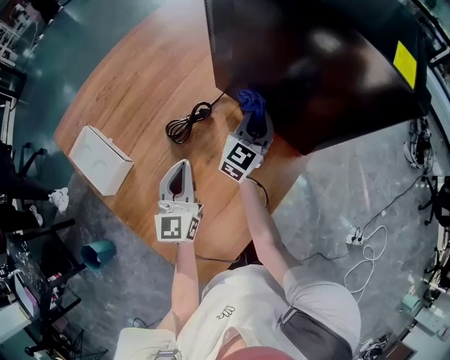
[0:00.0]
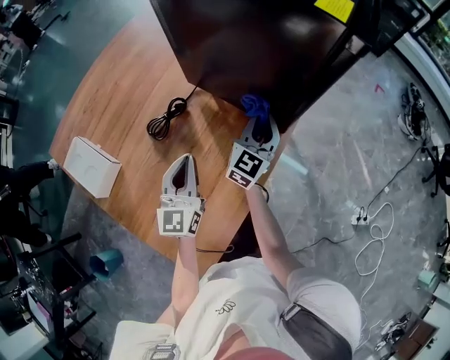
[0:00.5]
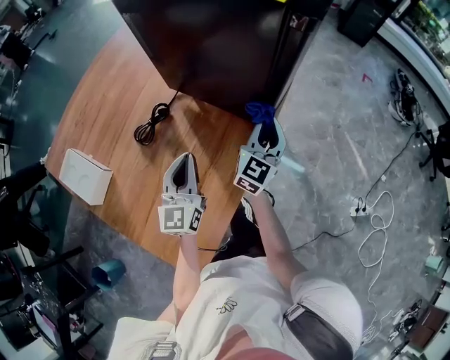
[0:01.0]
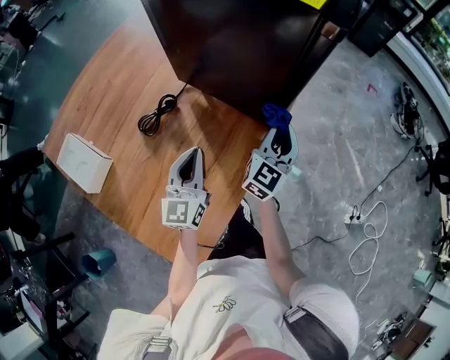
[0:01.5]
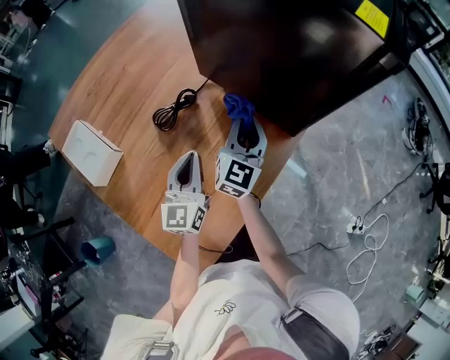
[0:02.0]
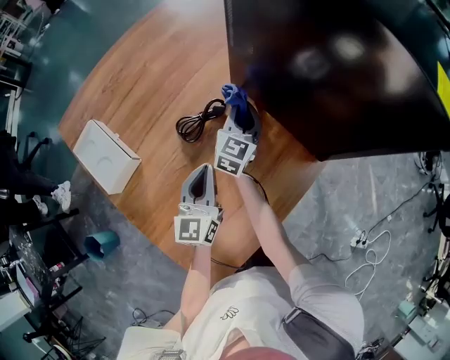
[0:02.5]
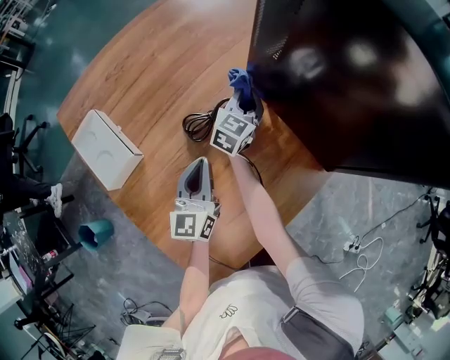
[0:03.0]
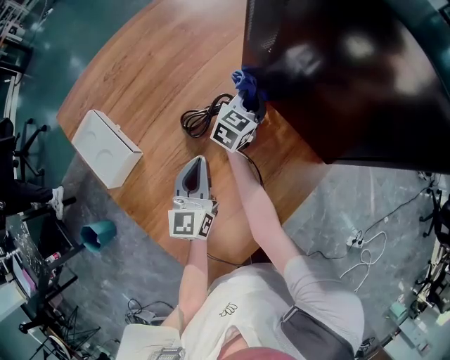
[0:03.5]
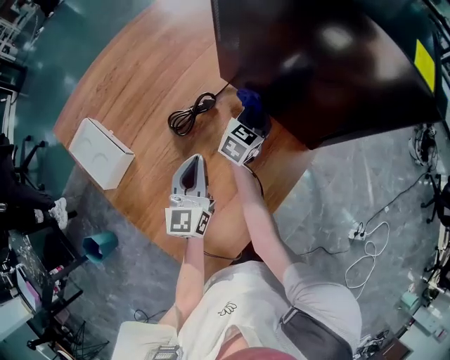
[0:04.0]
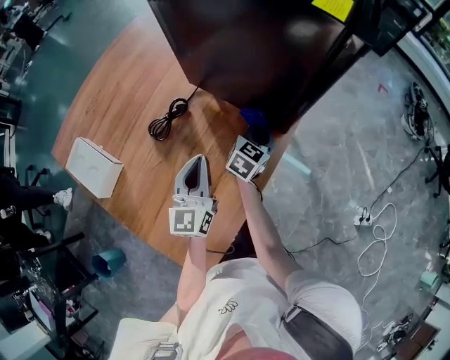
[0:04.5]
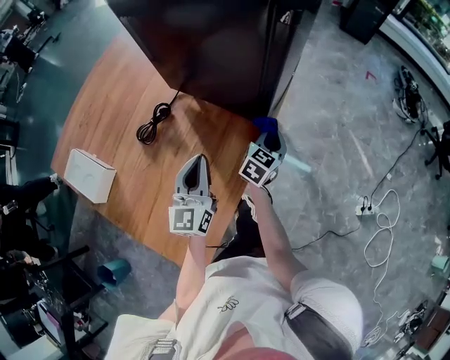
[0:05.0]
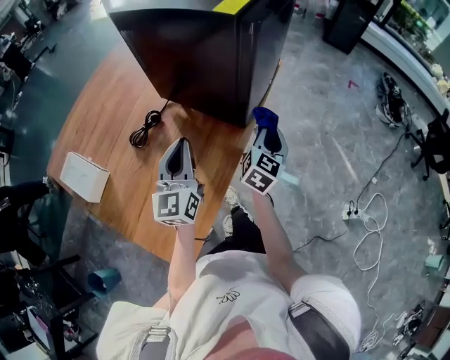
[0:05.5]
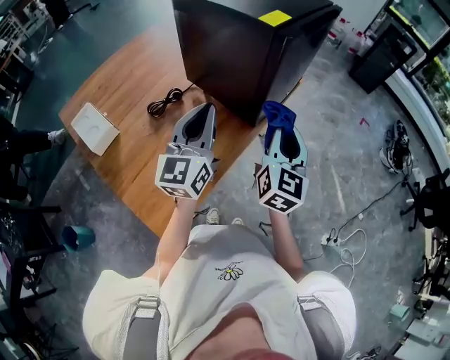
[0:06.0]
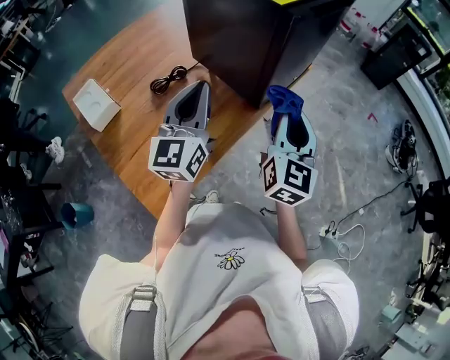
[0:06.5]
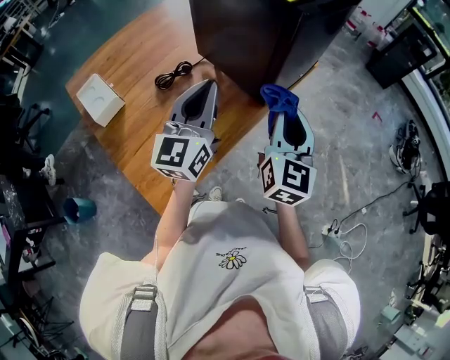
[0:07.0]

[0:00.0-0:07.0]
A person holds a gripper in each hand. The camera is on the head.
0:00.0 to 0:02.0: The right gripper goes approximately 5 cm backward, and goes to the right and returns, some 20 cm each way, while the left gripper travels to the right by roughly 5 cm.
0:02.0 to 0:03.5: The left gripper goes some 10 cm to the left; the right gripper travels forward, to the left and downward by about 20 cm.
0:03.5 to 0:05.0: The left gripper moves to the right, about 20 cm, and rotates some 20 degrees. The right gripper moves to the right, roughly 35 cm.
0:05.0 to 0:07.0: The right gripper goes roughly 30 cm upward and backward, and turns by about 40 degrees, while the left gripper shifts about 20 cm upward.

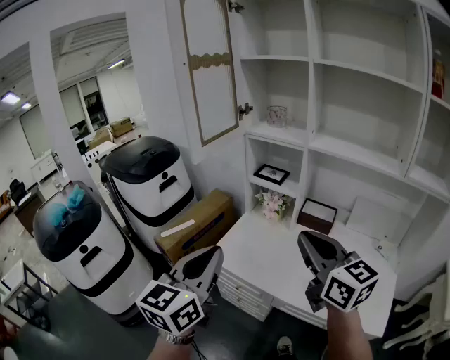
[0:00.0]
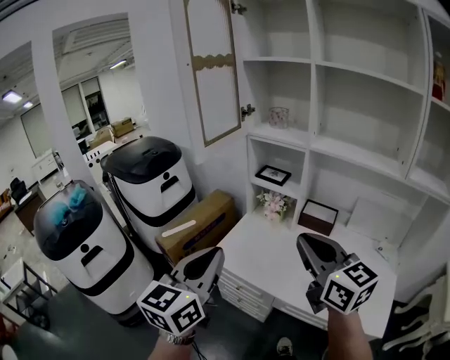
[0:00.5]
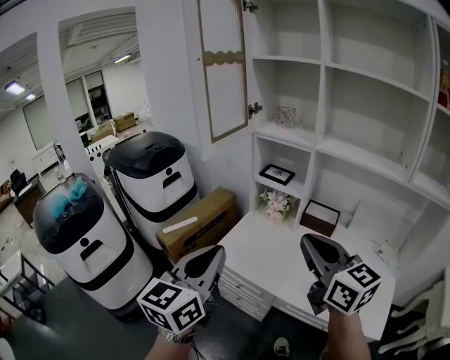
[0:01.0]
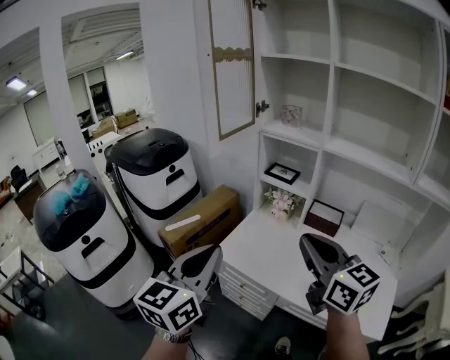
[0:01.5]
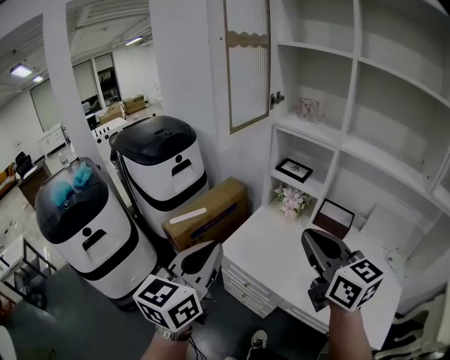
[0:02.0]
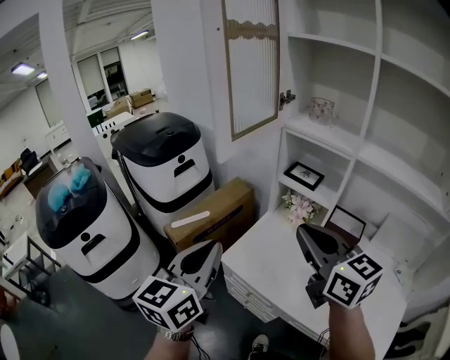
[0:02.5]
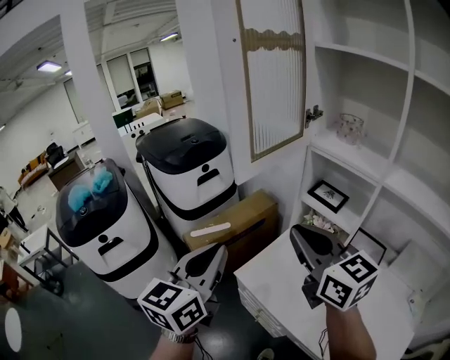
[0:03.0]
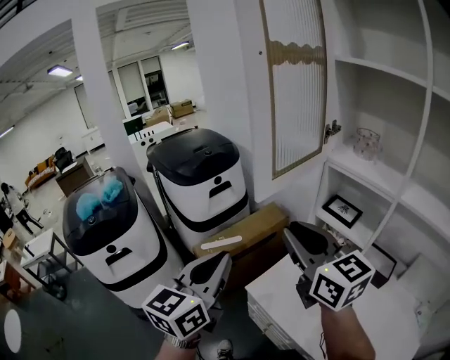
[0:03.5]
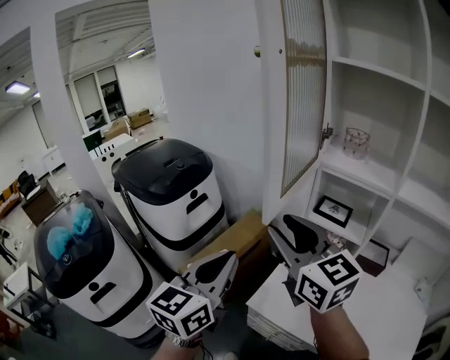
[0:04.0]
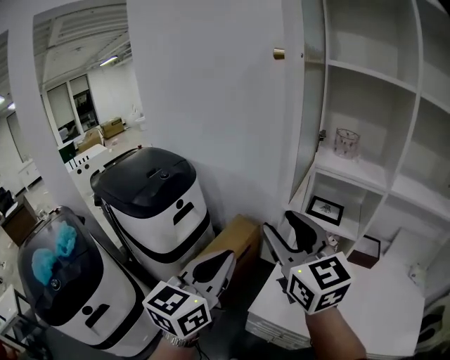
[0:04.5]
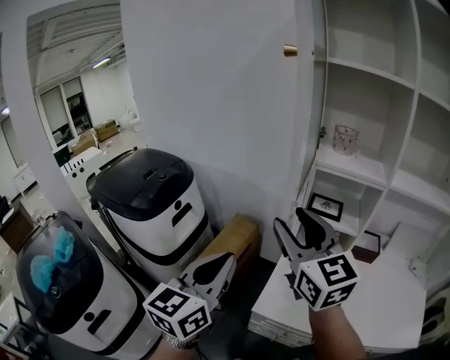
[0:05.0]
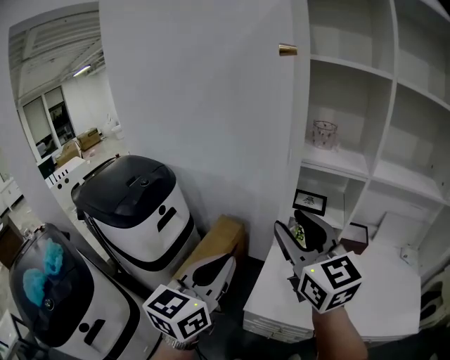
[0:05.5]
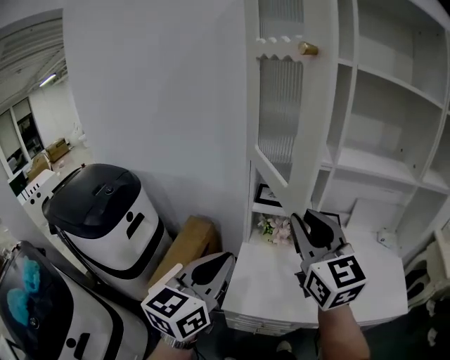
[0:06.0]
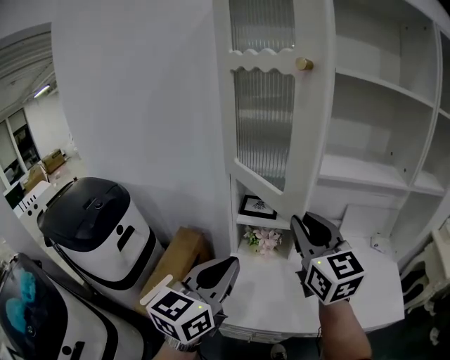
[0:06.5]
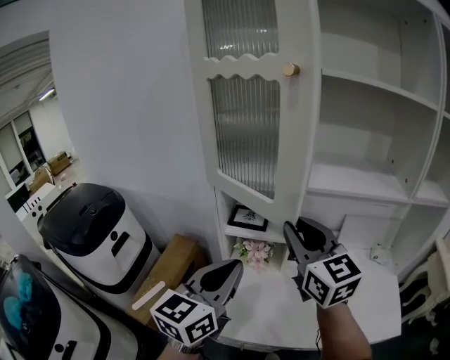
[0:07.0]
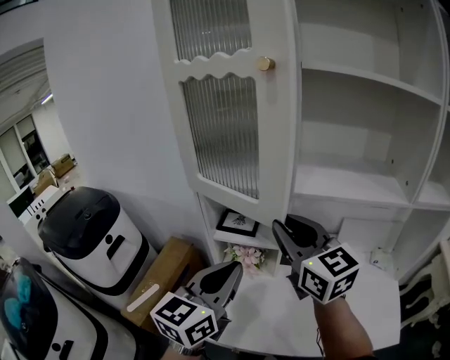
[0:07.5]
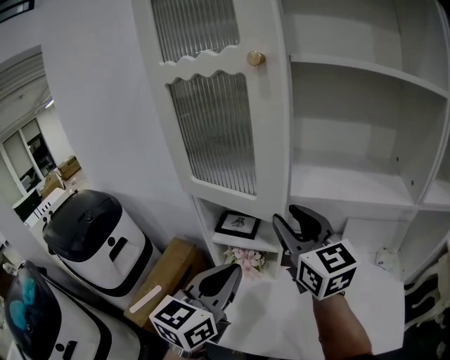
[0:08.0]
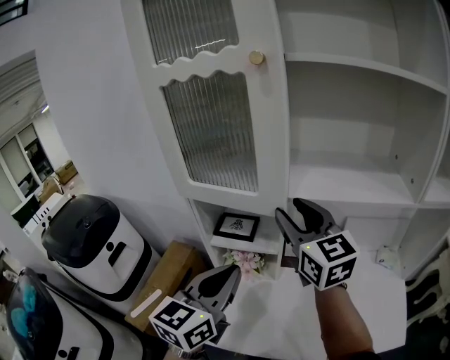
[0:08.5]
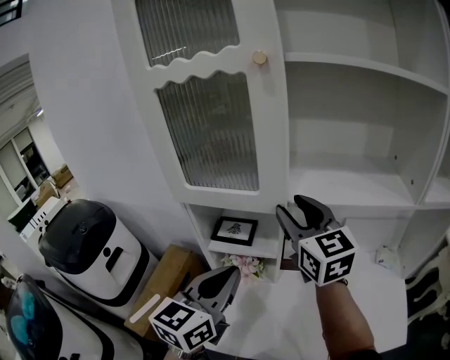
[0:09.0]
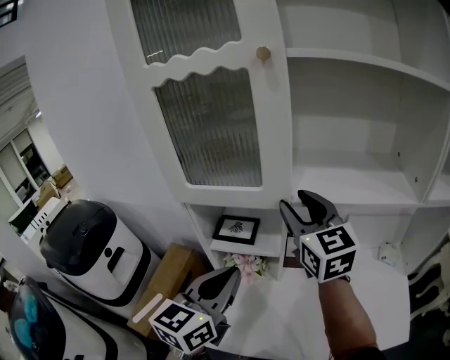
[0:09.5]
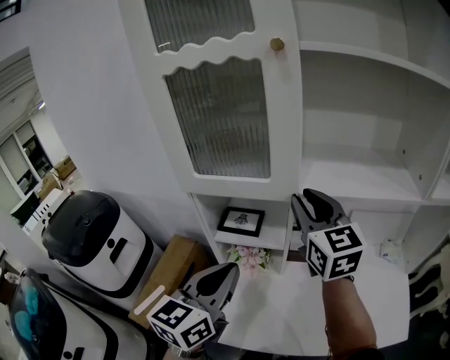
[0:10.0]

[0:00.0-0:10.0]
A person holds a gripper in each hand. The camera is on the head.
0:00.0 to 0:02.0: Both grippers travel together to the left, some 5 cm.
0:02.0 to 0:04.0: The left gripper shifts about 25 cm forward; the right gripper goes some 30 cm forward and to the left, and opens its fingers.
0:04.0 to 0:06.0: The right gripper shifts by some 15 cm, and changes its angle by roughly 40 degrees. Meanwhile the left gripper moves approximately 5 cm, and turns by some 30 degrees.
0:06.0 to 0:08.0: The right gripper heads forward and to the right, covering approximately 25 cm; the left gripper travels to the right and forward by roughly 25 cm.
0:08.0 to 0:10.0: The right gripper shifts by roughly 5 cm.

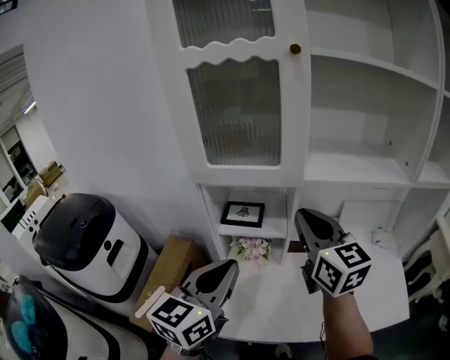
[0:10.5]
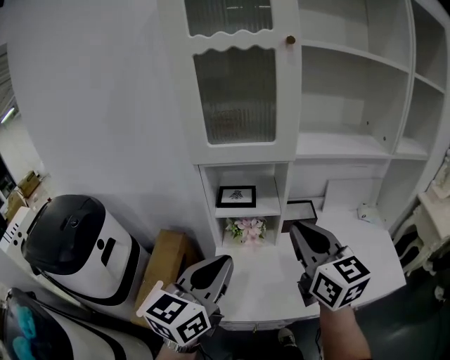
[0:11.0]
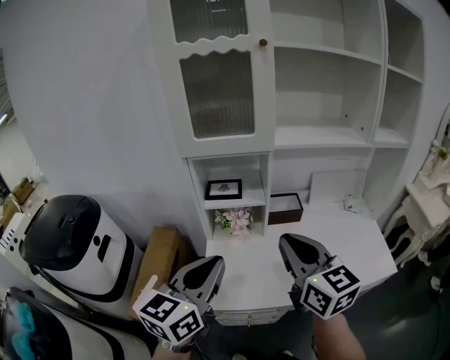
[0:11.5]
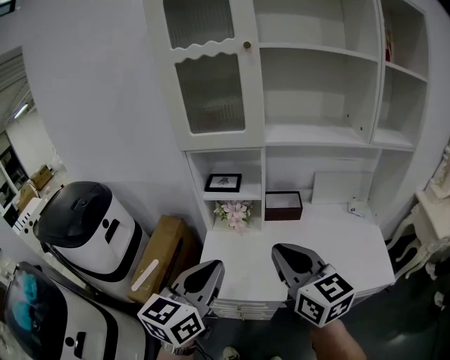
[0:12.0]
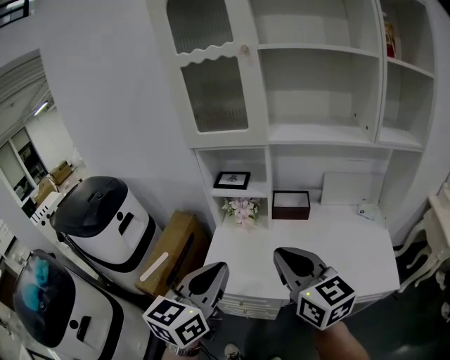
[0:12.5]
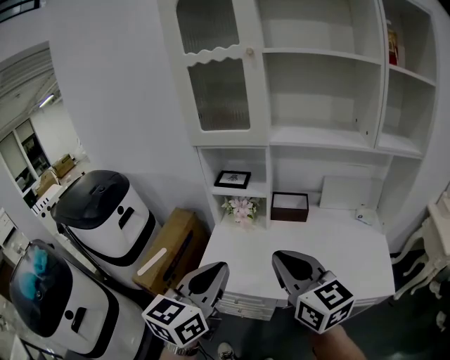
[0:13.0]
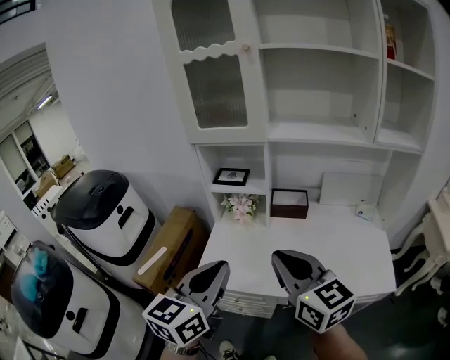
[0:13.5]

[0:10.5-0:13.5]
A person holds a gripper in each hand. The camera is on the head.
0:10.5 to 0:12.0: Both grippers travel together backward, about 20 cm.
0:12.0 to 0:13.5: The right gripper shifts by about 5 cm, while the left gripper is displaced backward by some 5 cm.

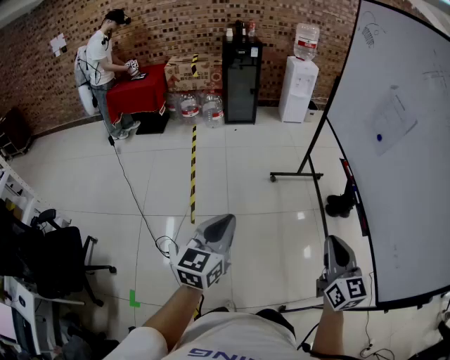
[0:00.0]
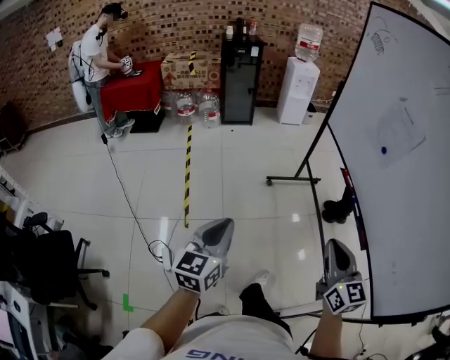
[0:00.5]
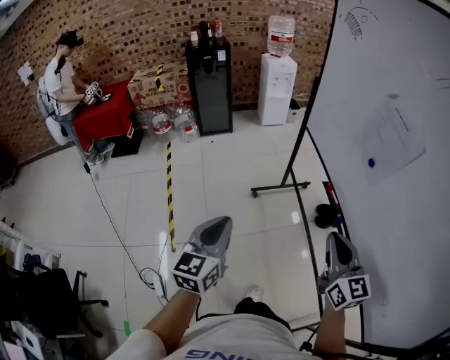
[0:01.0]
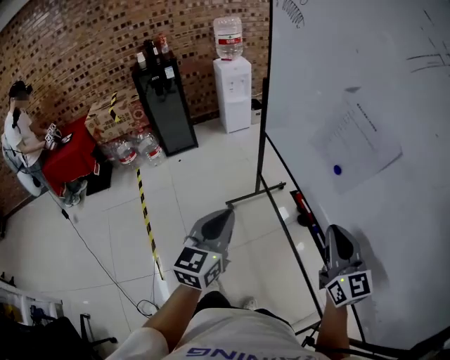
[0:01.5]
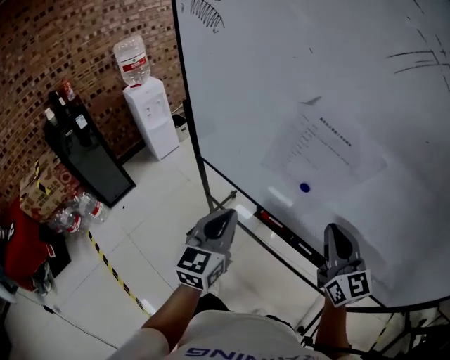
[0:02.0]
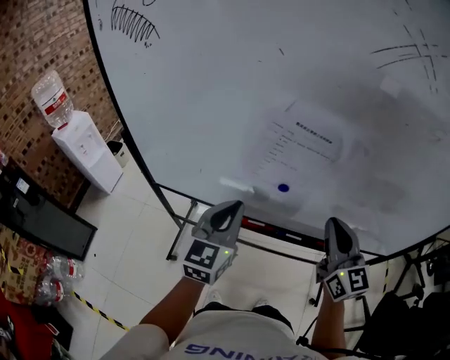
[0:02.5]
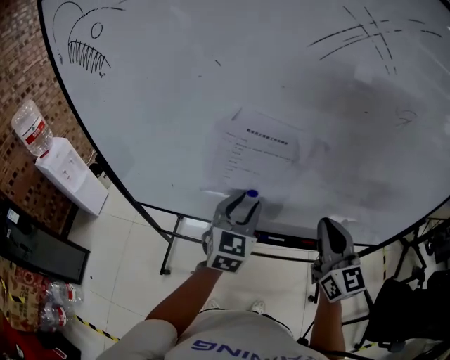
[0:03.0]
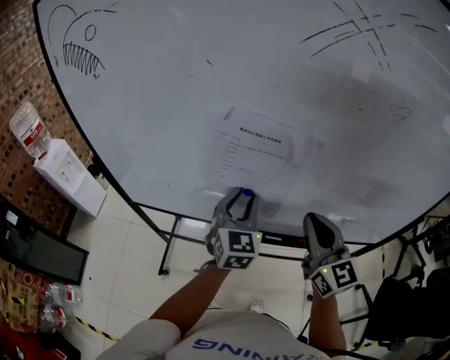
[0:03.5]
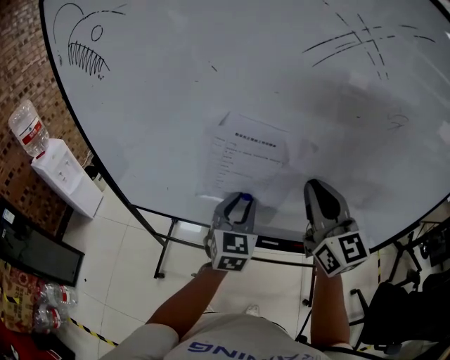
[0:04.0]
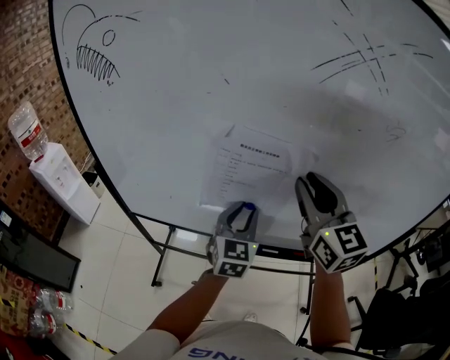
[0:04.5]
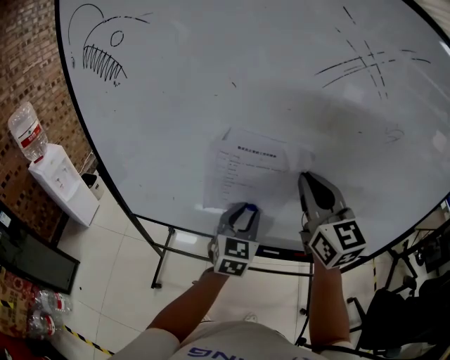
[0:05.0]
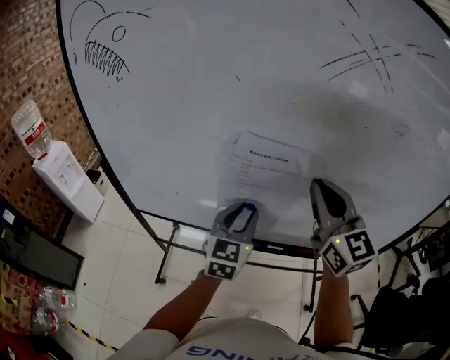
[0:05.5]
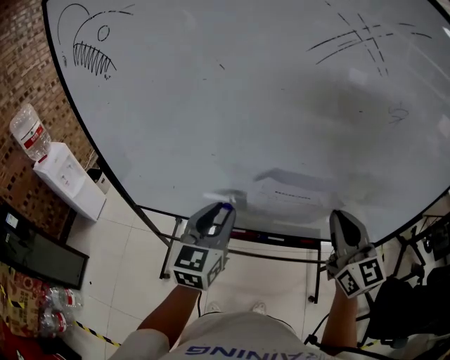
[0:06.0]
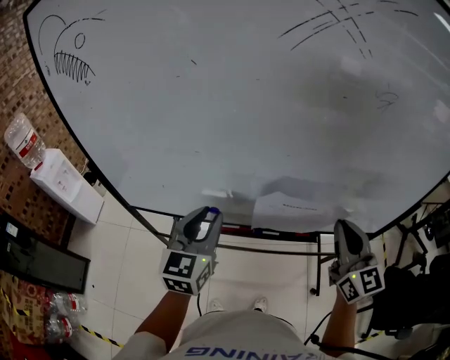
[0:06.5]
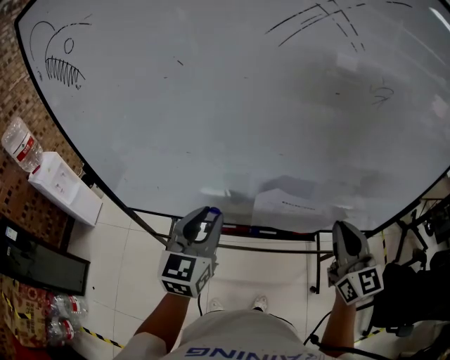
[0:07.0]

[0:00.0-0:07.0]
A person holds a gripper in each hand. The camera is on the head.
0:00.0 to 0:02.0: Both grippers are carried roughly 50 cm. The left gripper rotates about 50 degrees, while the right gripper changes its angle by some 40 degrees.
0:02.0 to 0:03.5: The right gripper changes place by about 5 cm, and rotates about 30 degrees, while the left gripper changes place by roughly 20 cm, changes its angle by roughly 30 degrees, and opens up.
0:03.5 to 0:05.0: The right gripper heads upward, forward and to the left, covering approximately 15 cm, and opens, then closes once more.
0:05.0 to 0:07.0: The right gripper goes approximately 25 cm to the right, downward and backward; the left gripper is displaced backward and to the left by some 10 cm.
